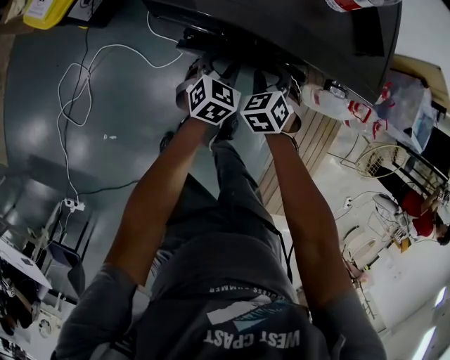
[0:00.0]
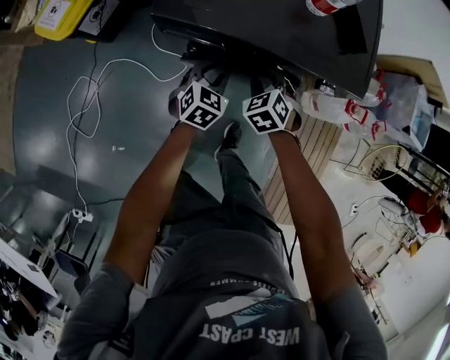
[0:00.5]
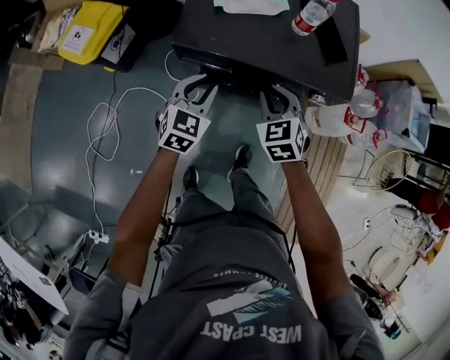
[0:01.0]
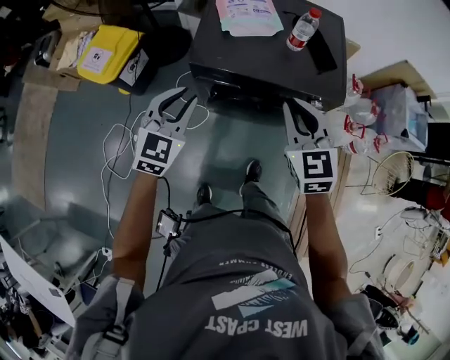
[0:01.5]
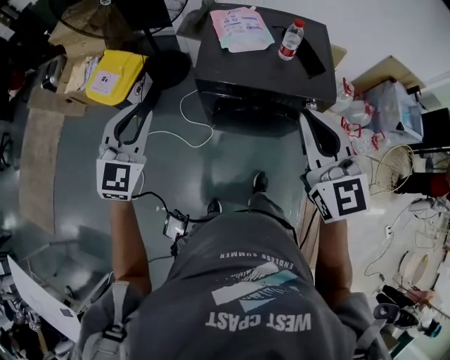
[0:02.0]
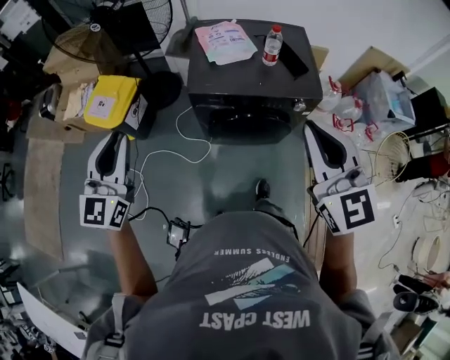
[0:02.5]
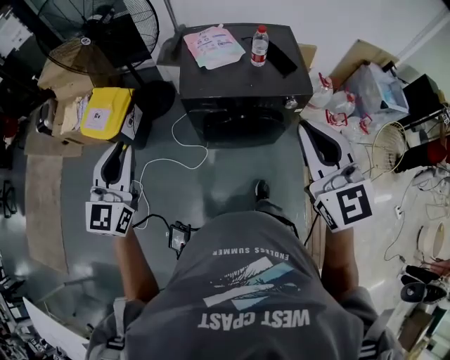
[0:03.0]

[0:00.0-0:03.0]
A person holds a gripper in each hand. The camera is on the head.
0:00.0 to 0:01.5: The right gripper moves upward, approximately 35 cm, points its fingers approximately 30 degrees further upward, and closes. The left gripper travels upward and to the left by roughly 35 cm, and changes its angle by some 20 degrees.
0:01.5 to 0:03.0: The left gripper goes roughly 25 cm upward, to the left and backward, and changes its angle by about 20 degrees. The right gripper heads upward and backward, covering roughly 25 cm.

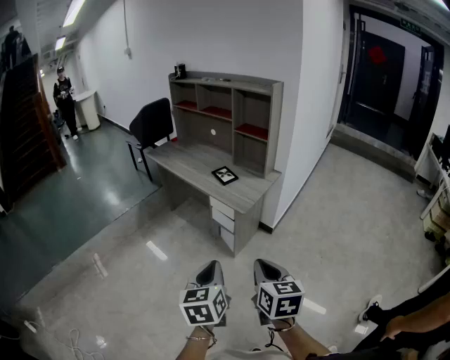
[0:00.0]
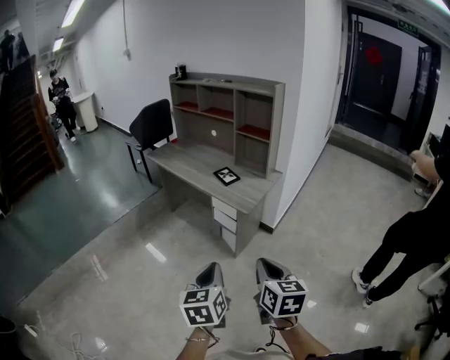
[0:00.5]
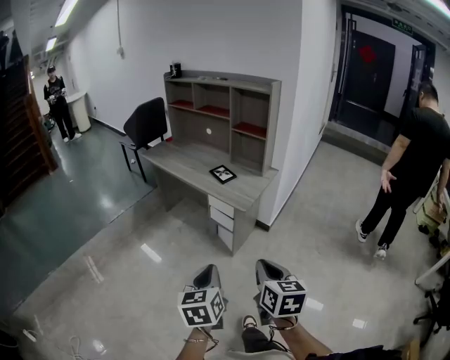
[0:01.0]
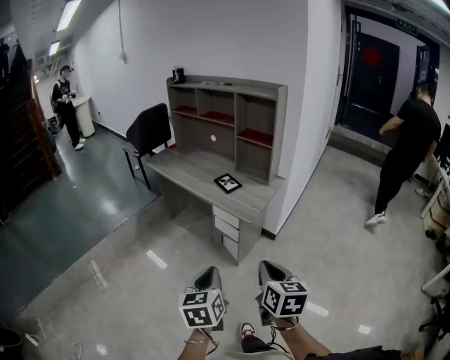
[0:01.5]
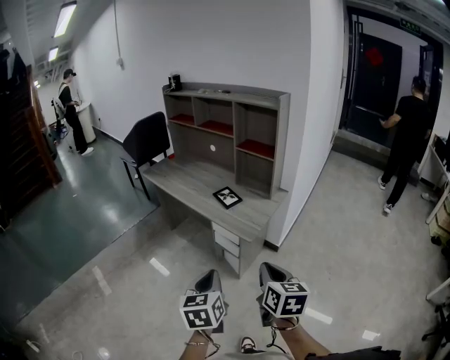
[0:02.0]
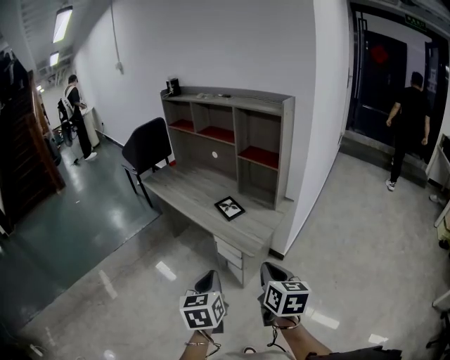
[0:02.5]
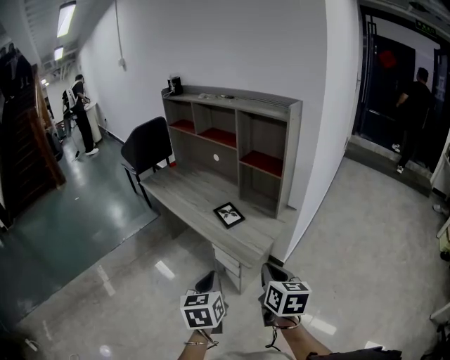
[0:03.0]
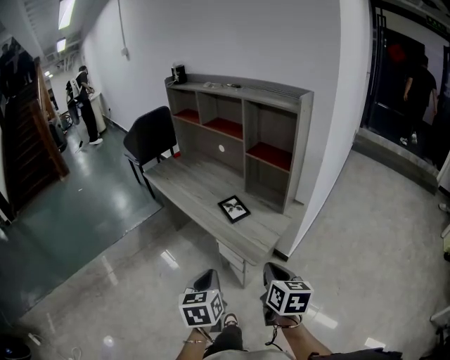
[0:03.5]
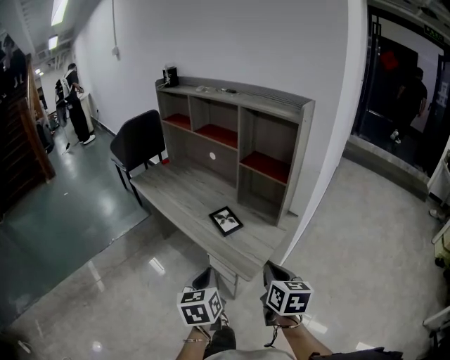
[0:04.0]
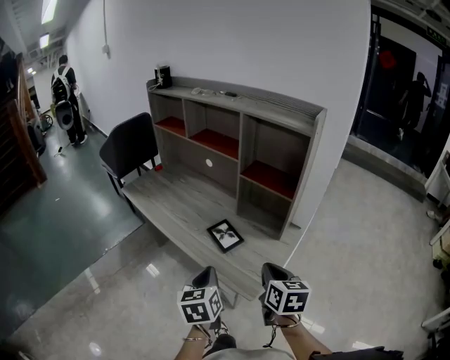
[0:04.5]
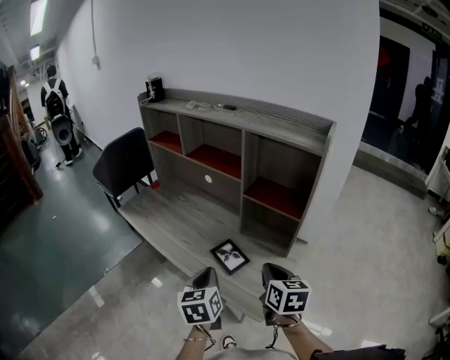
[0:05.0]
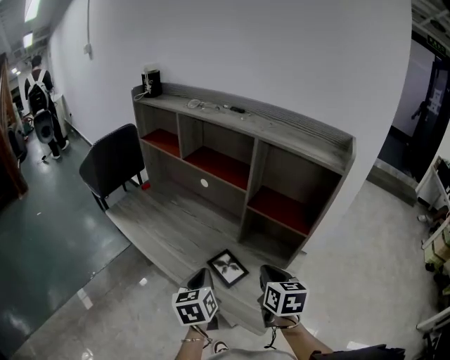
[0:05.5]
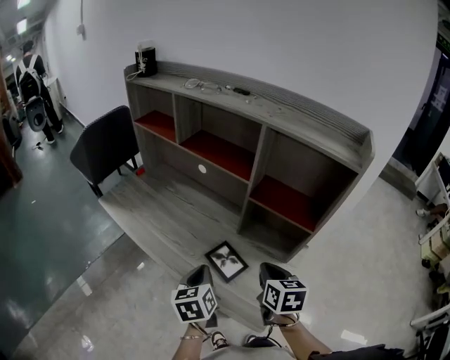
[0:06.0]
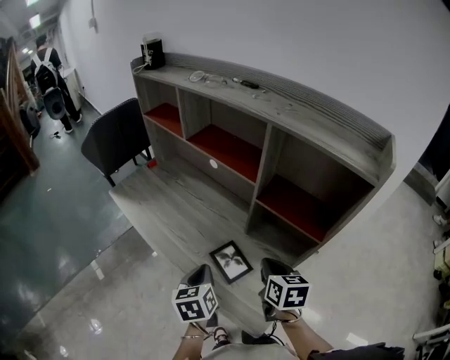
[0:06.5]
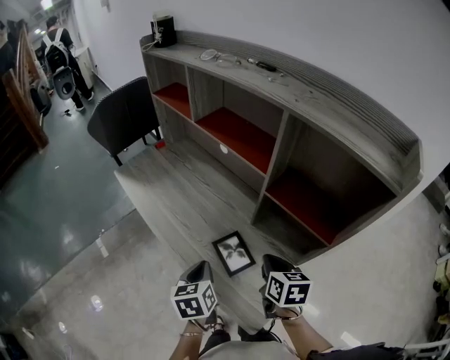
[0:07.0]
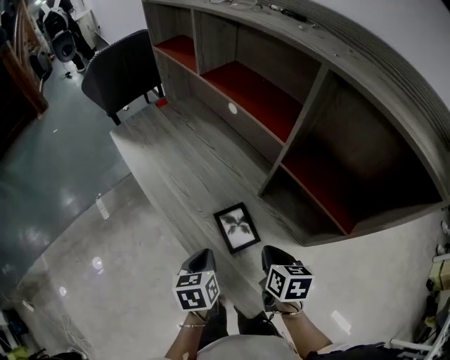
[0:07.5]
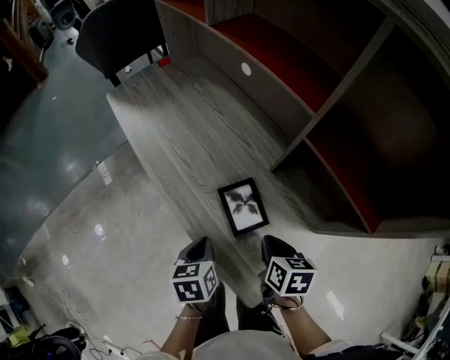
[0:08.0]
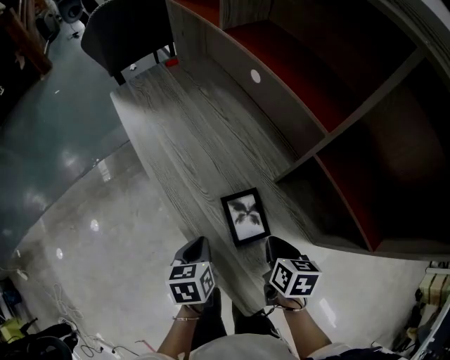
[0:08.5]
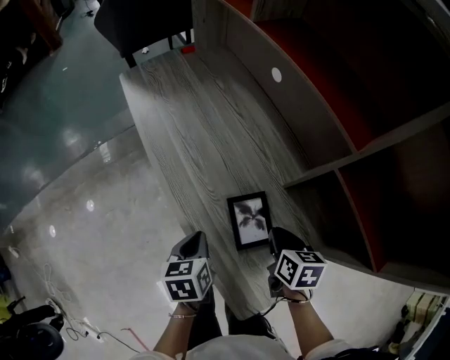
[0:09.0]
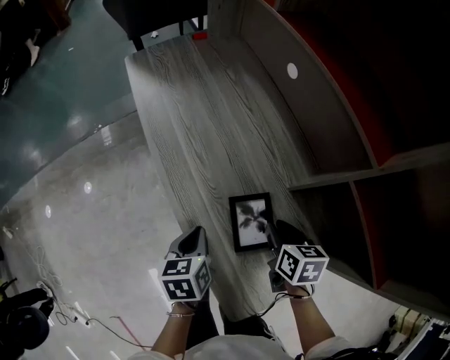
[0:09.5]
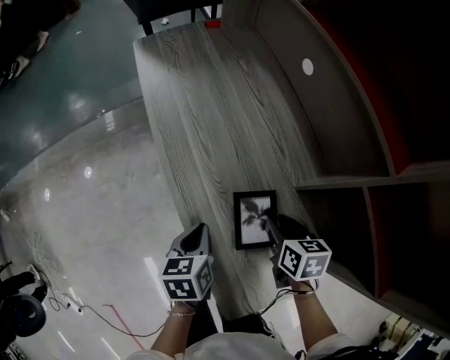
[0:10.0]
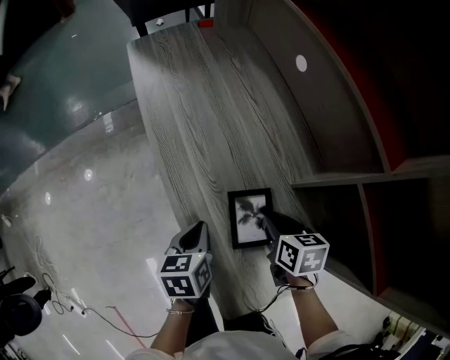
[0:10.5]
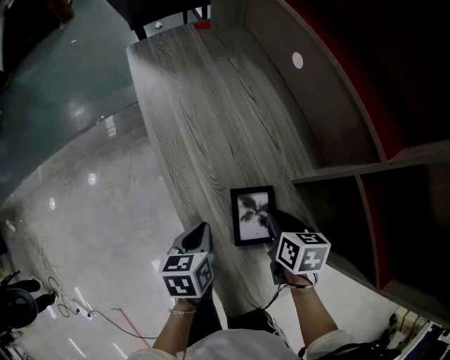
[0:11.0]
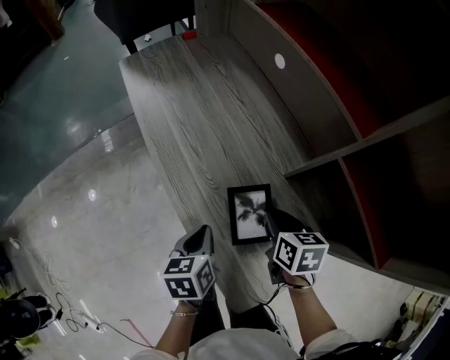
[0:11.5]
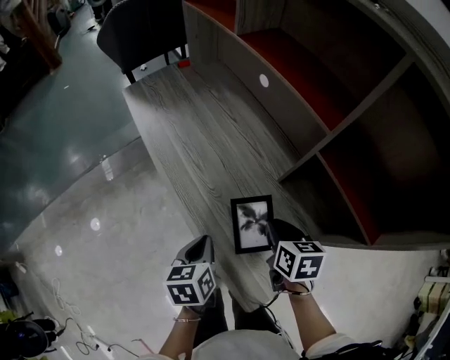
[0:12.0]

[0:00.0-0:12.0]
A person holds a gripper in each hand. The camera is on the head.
0:00.0 to 0:02.0: The grippers both shift forward by roughly 15 cm.
0:02.0 to 0:04.0: Both grippers travel together forward, approximately 25 cm.
0:04.0 to 0:06.0: Both grippers move forward, approximately 30 cm.
0:06.0 to 0:08.0: The grippers both shift downward by approximately 15 cm. The right gripper rotates some 30 degrees; the left gripper changes its angle by about 20 degrees.
0:08.0 to 0:10.0: The left gripper changes place by some 5 cm; the right gripper travels forward by about 10 cm, swivels roughly 20 degrees, and opens its fingers.
0:10.0 to 0:12.0: Both grippers move upward, some 5 cm.

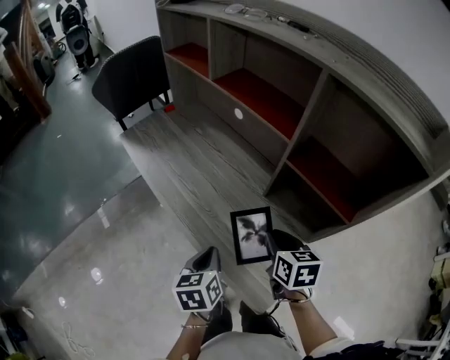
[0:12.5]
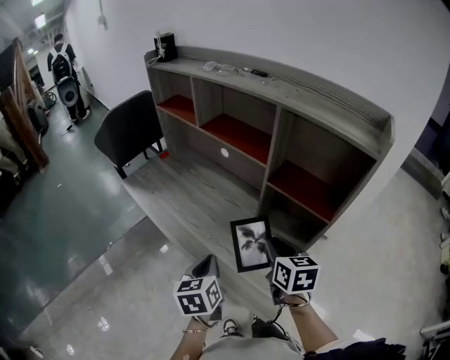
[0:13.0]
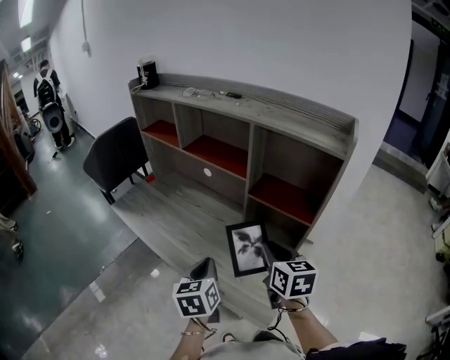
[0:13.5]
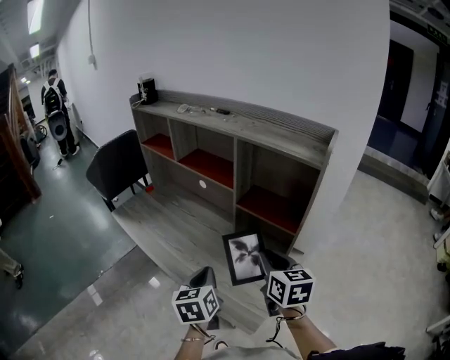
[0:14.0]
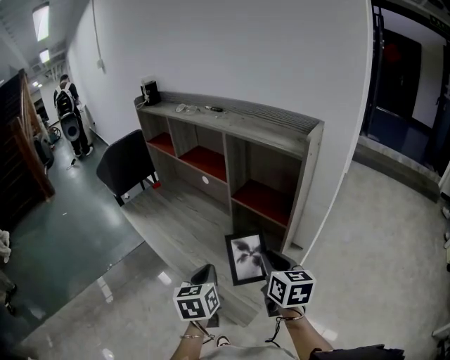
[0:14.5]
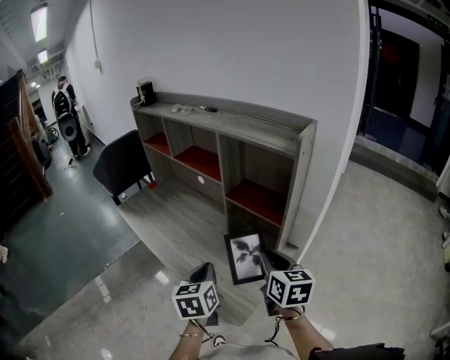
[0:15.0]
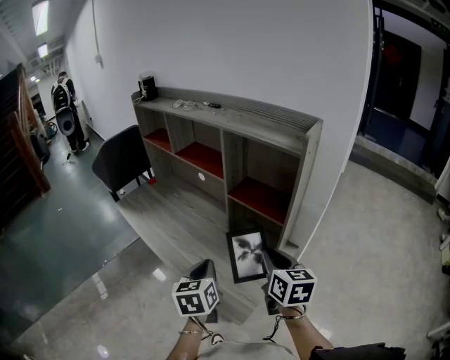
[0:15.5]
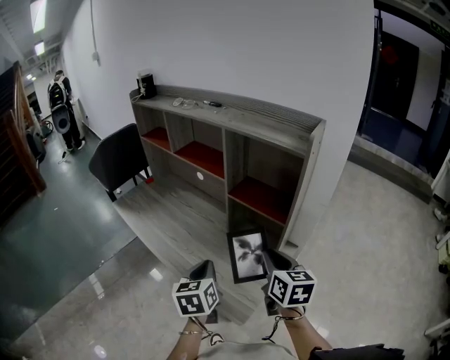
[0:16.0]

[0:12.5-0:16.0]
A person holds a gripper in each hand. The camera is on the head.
0:12.5 to 0:14.5: Both grippers move upward, to the right and backward, approximately 20 cm. The right gripper turns by roughly 20 degrees.
0:14.5 to 0:16.0: The grippers make only small movements.

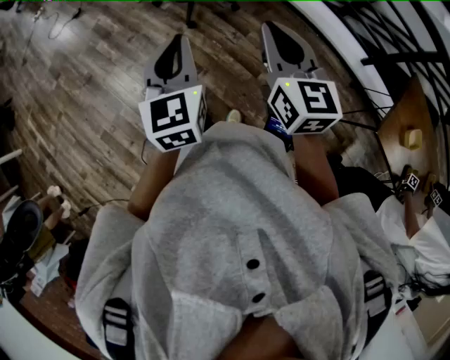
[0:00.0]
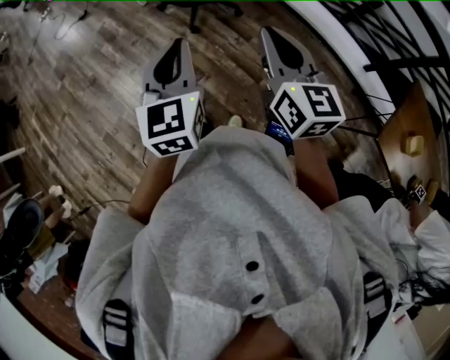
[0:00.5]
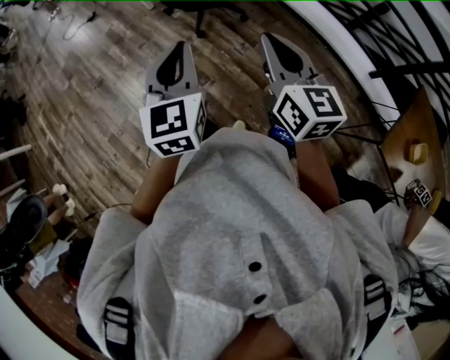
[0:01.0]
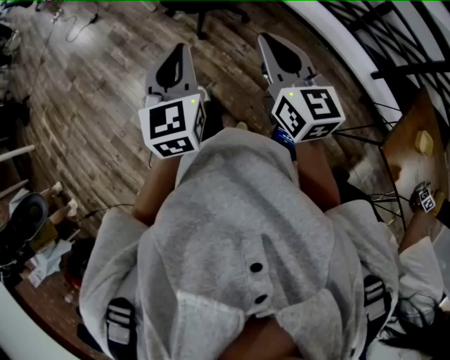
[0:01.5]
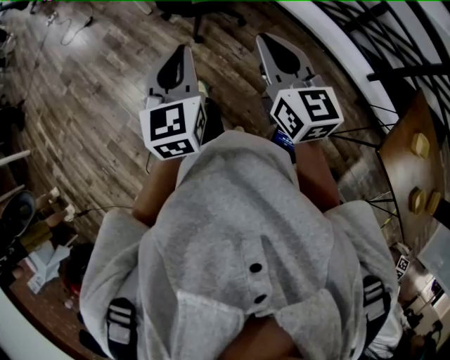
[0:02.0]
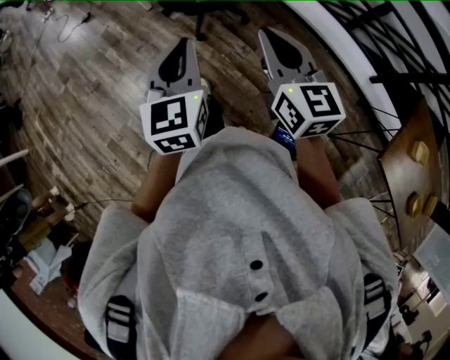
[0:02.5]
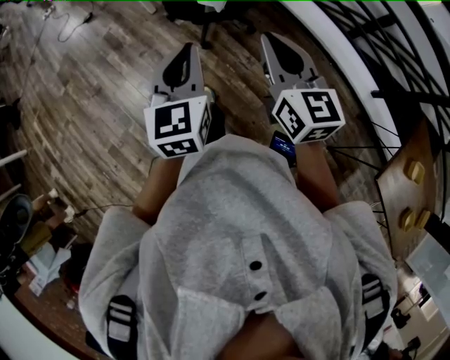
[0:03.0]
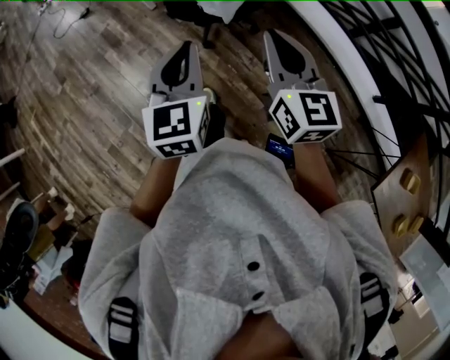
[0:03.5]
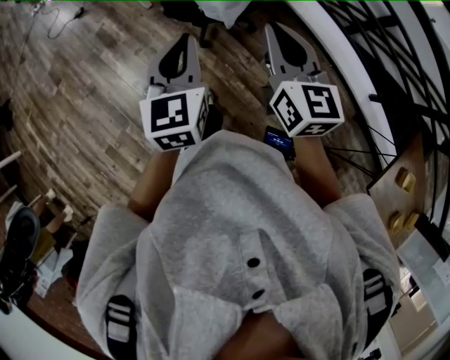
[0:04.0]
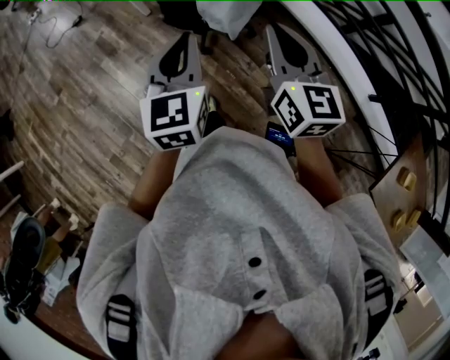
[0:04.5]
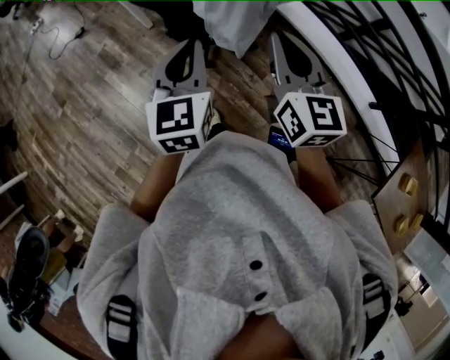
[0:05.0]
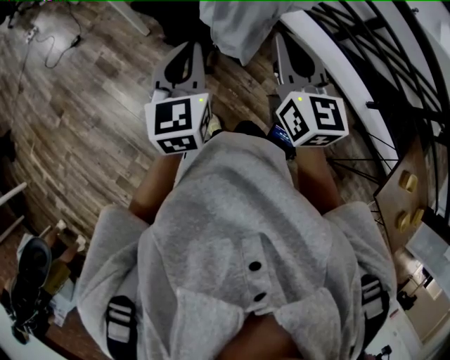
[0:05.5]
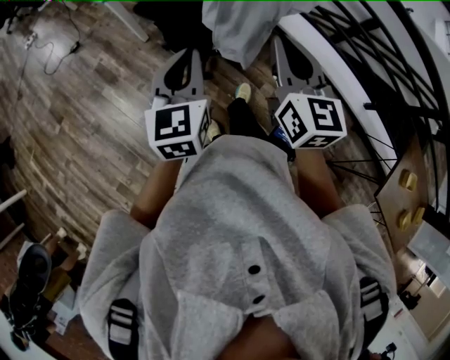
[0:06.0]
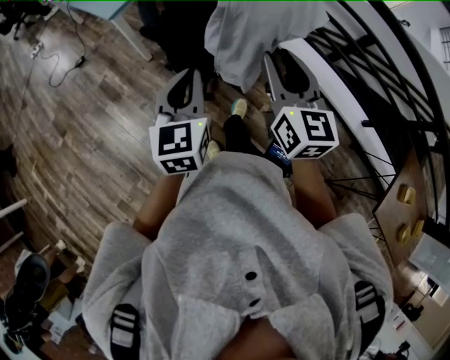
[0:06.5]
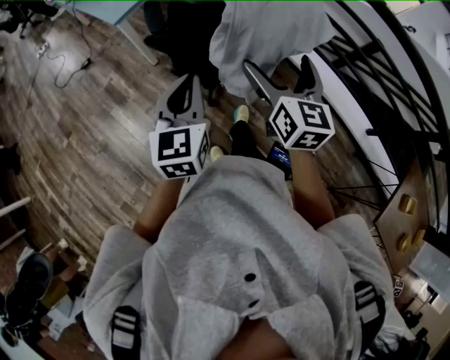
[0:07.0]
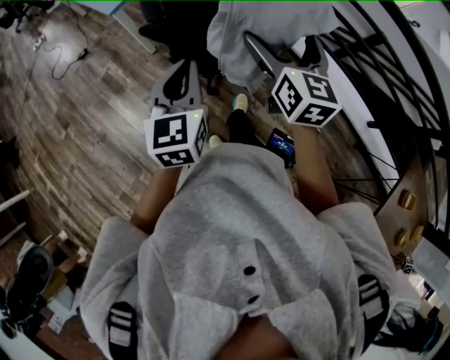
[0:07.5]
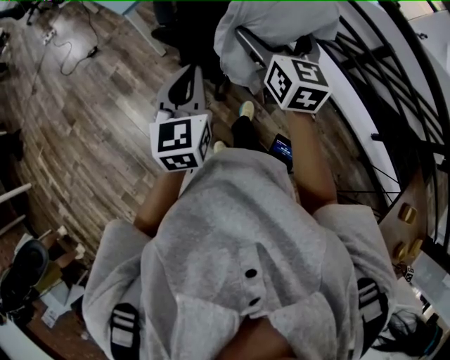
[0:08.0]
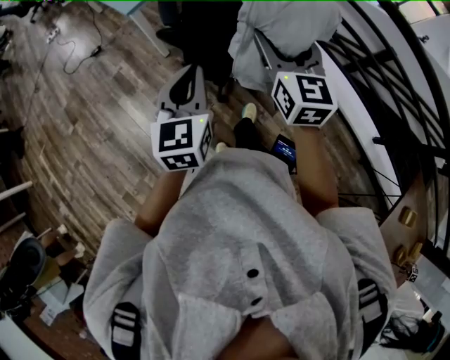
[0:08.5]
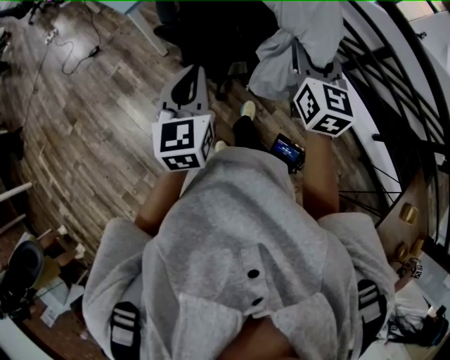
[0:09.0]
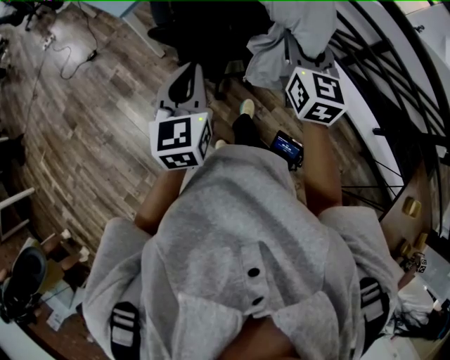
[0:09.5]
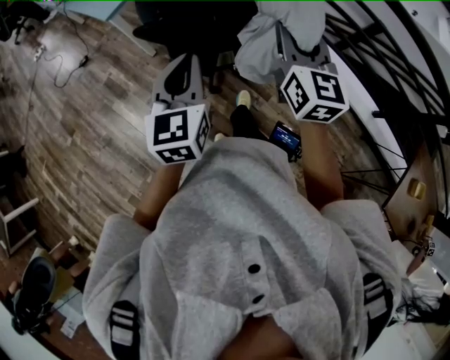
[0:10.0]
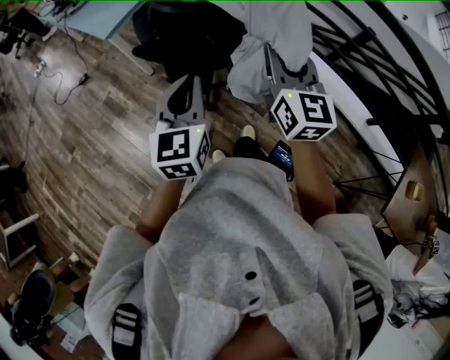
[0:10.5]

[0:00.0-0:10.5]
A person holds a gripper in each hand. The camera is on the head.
0:00.0 to 0:02.0: The grippers move only a little.
0:02.0 to 0:04.0: Both grippers move forward, approximately 25 cm.
0:04.0 to 0:06.5: The right gripper heads forward, covering some 10 cm. Meanwhile the left gripper goes approximately 10 cm forward and to the left.
0:06.5 to 0:08.5: The right gripper is displaced forward by approximately 10 cm, and opens, then closes once more.
0:08.5 to 0:10.5: The right gripper heads to the right and backward, covering about 10 cm, and closes its fingers. Meanwhile the left gripper shifts by some 5 cm.
